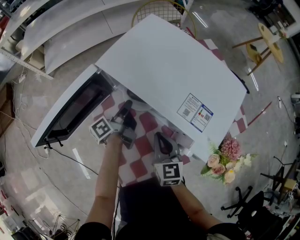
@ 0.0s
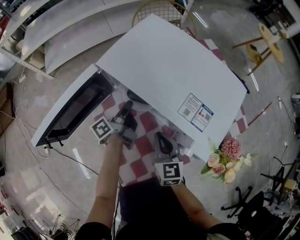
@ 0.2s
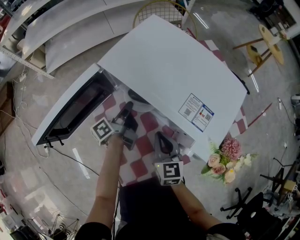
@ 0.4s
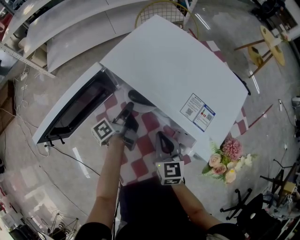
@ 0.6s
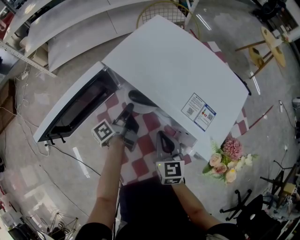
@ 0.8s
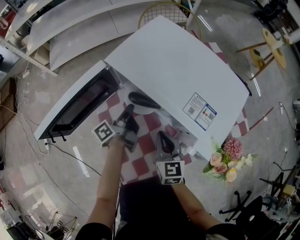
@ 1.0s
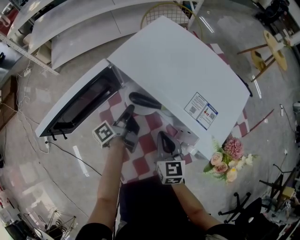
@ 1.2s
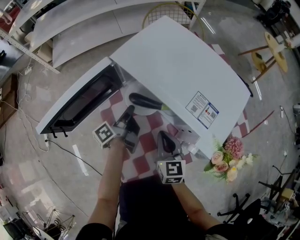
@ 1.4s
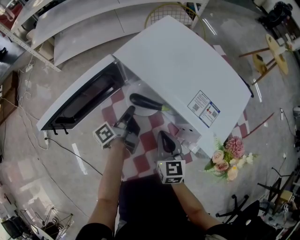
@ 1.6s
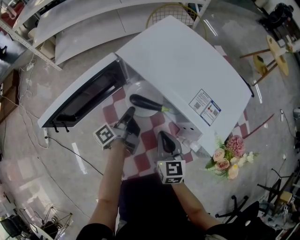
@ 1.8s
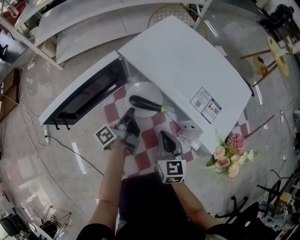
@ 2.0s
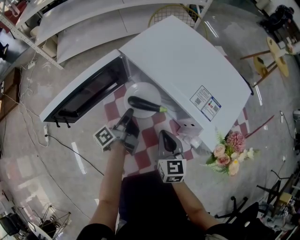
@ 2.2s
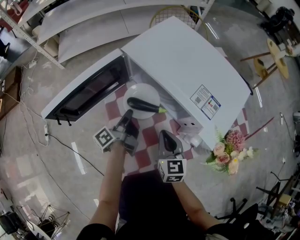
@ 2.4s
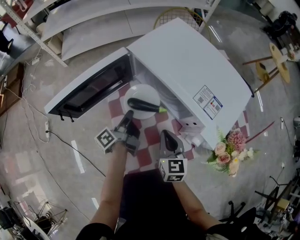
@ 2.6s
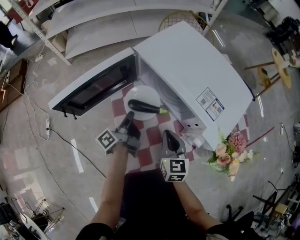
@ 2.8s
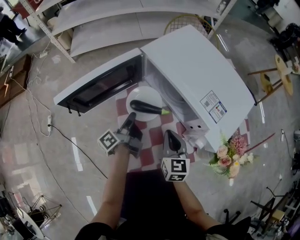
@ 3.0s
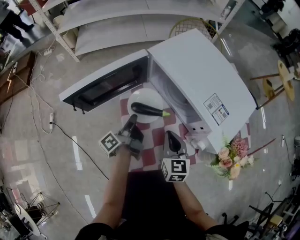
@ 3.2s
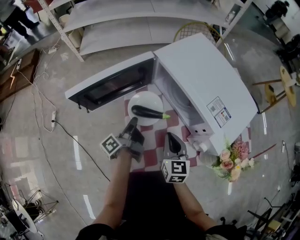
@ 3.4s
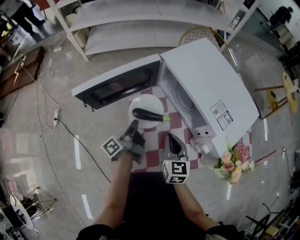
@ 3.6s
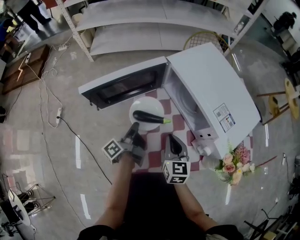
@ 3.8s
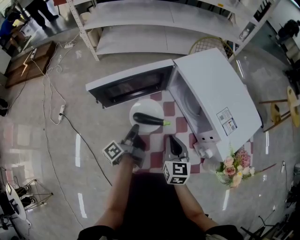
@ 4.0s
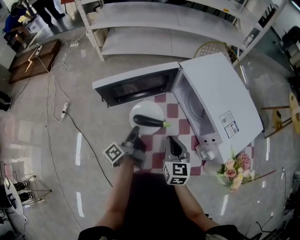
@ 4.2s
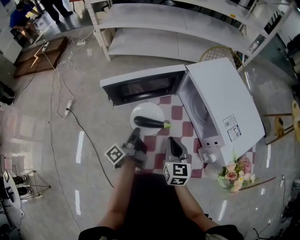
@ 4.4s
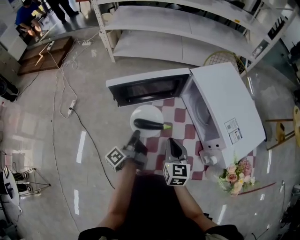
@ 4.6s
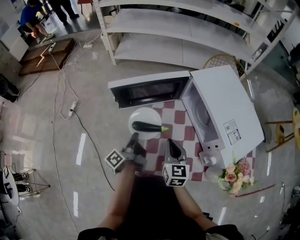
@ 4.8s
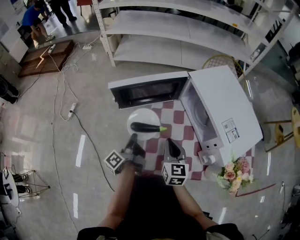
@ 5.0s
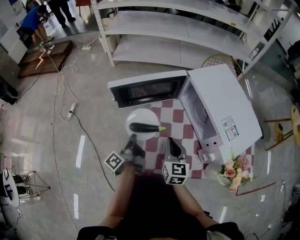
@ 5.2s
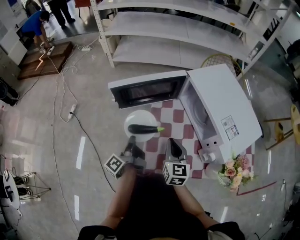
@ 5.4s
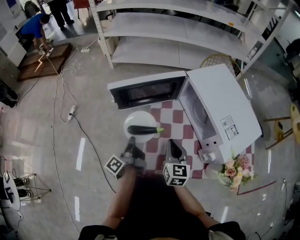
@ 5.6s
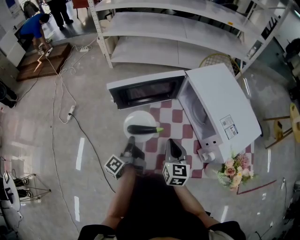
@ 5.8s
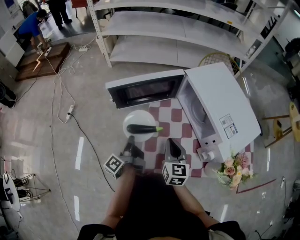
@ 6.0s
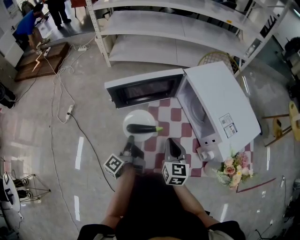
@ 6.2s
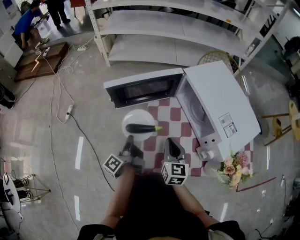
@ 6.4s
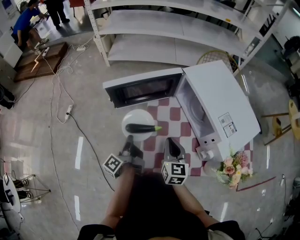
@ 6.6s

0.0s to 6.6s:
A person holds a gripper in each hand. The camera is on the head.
0.0s to 1.6s: The left gripper ends up approximately 5 cm from where it was.
1.6s to 3.2s: The left gripper is displaced backward and to the left by about 10 cm.
3.2s to 5.0s: The right gripper moves to the left, roughly 10 cm, while the left gripper goes about 15 cm to the left and backward, and changes its angle by approximately 20 degrees.
5.0s to 6.6s: There are only small adjustments of the grippers.

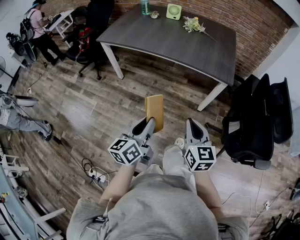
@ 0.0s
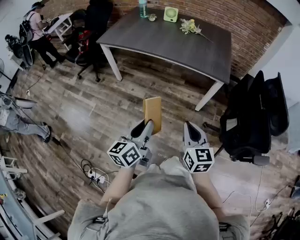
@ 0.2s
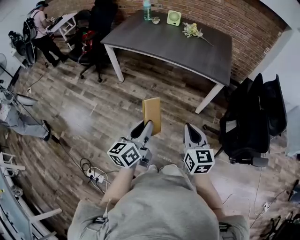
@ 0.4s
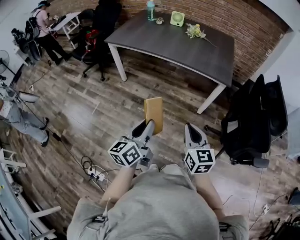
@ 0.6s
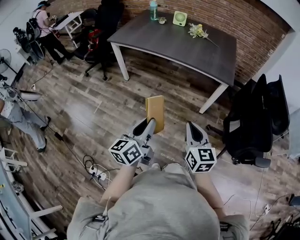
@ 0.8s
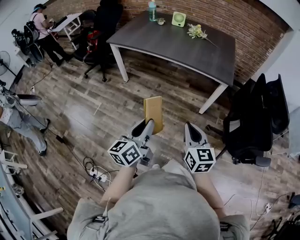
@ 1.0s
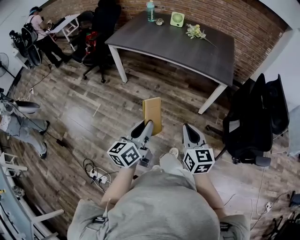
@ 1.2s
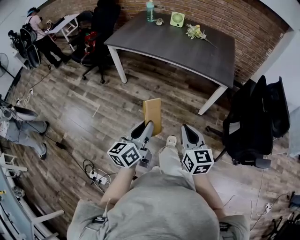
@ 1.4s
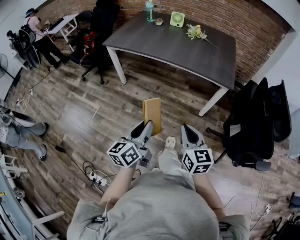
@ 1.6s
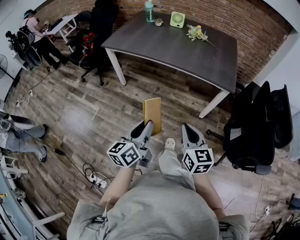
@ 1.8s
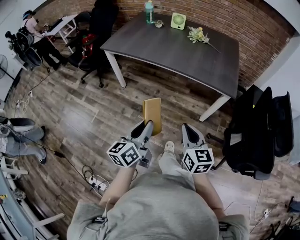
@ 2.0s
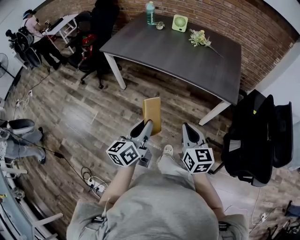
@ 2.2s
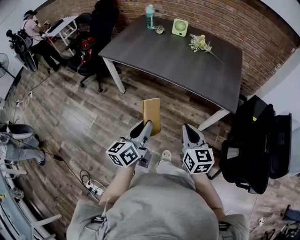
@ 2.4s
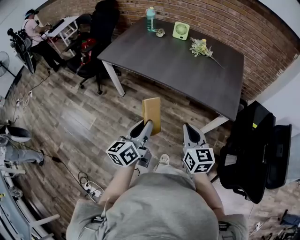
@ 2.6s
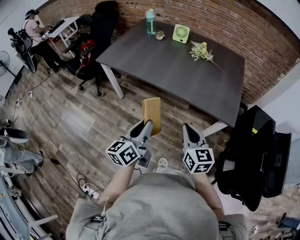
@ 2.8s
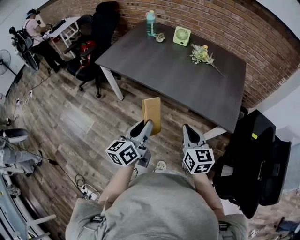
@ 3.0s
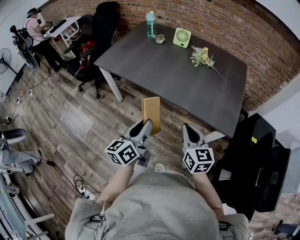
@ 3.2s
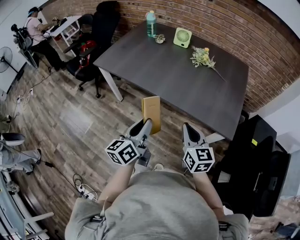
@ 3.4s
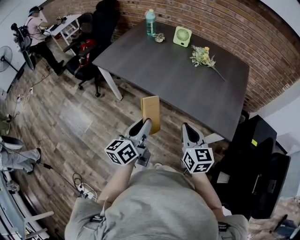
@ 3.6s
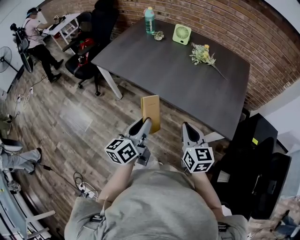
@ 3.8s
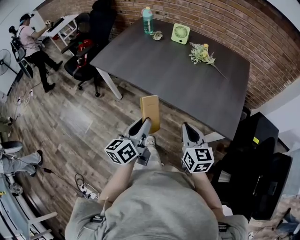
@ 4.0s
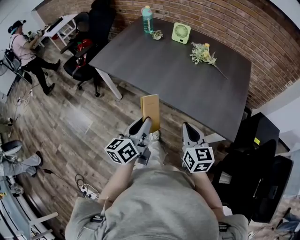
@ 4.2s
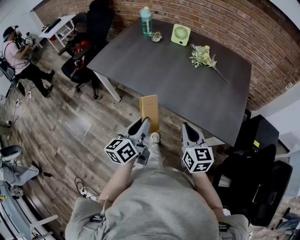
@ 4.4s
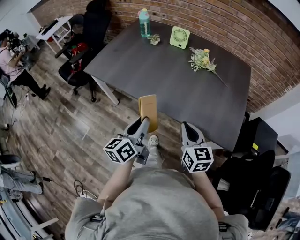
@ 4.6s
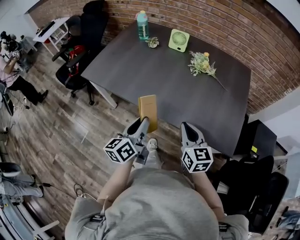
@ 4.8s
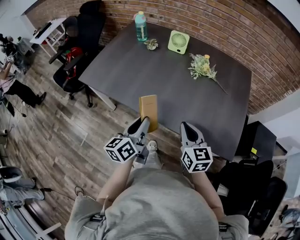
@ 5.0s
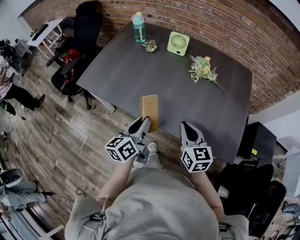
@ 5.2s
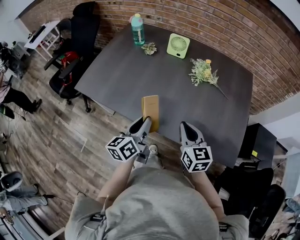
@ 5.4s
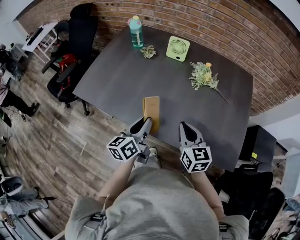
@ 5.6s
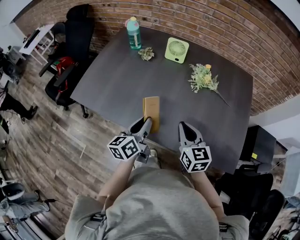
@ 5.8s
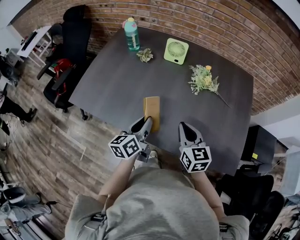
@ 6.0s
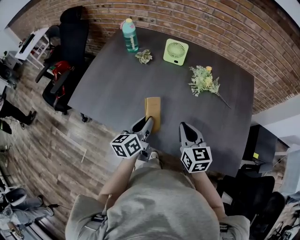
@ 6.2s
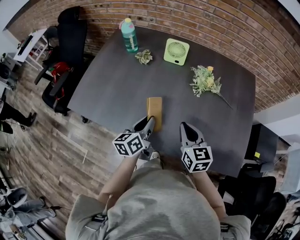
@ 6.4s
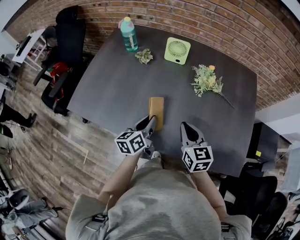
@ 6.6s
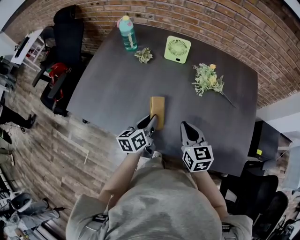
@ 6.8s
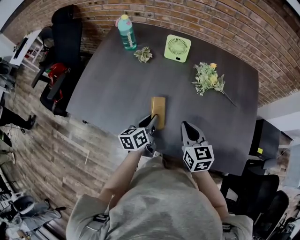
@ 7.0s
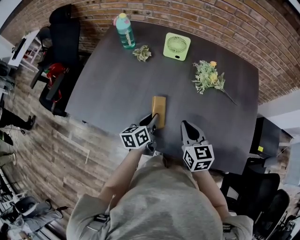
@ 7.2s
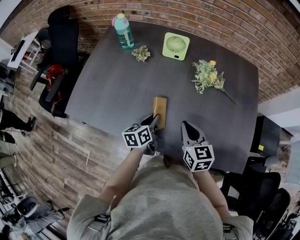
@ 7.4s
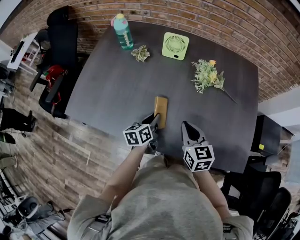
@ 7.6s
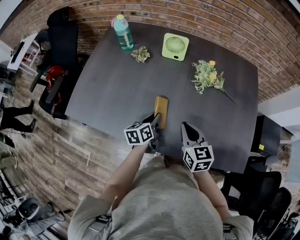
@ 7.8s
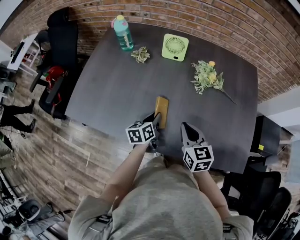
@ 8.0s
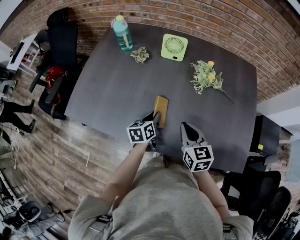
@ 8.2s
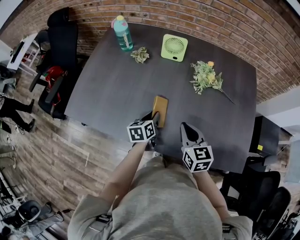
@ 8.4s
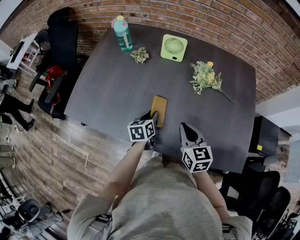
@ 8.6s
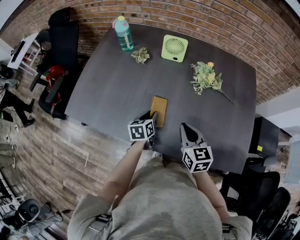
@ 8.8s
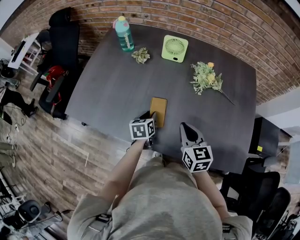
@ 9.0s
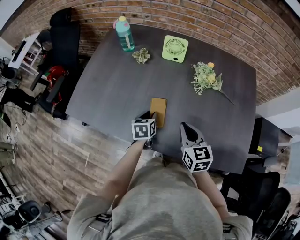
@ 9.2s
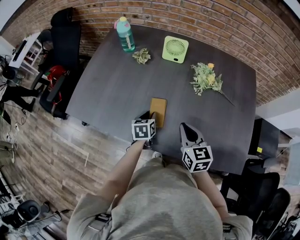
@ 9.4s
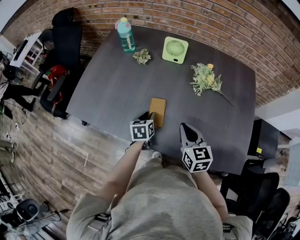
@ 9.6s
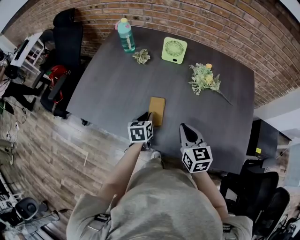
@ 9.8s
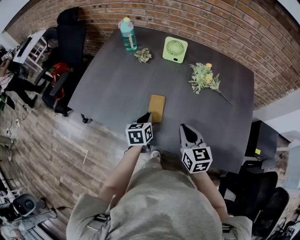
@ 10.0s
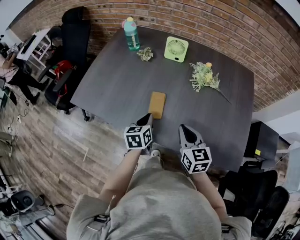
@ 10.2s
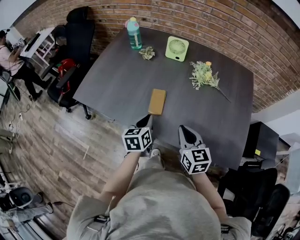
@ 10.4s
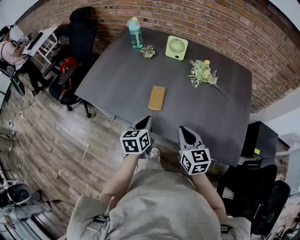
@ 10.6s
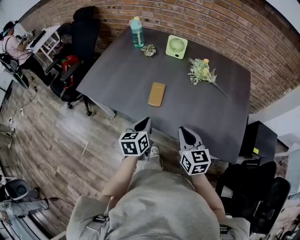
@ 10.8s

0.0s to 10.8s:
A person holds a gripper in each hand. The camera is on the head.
0.0s to 1.6s: The right gripper travels to the left by some 5 cm.
1.6s to 3.0s: The grippers both shift forward by roughly 30 cm.
3.0s to 4.6s: The two grippers go approximately 15 cm forward.
4.6s to 6.2s: The grippers both shift forward by about 25 cm.
6.2s to 7.8s: The left gripper goes approximately 10 cm downward and forward. The right gripper moves about 5 cm.
7.8s to 9.2s: The left gripper rotates some 20 degrees.
9.2s to 10.8s: The left gripper moves backward and upward, roughly 25 cm, and closes; the right gripper travels backward by about 15 cm.

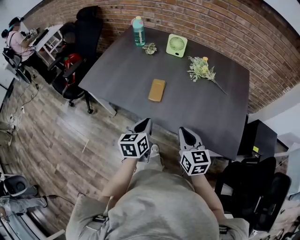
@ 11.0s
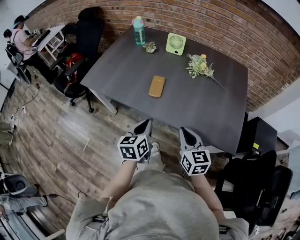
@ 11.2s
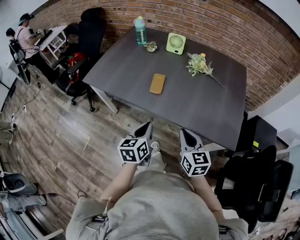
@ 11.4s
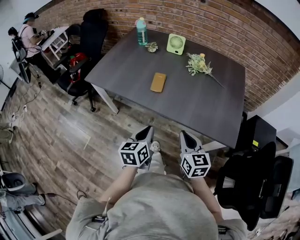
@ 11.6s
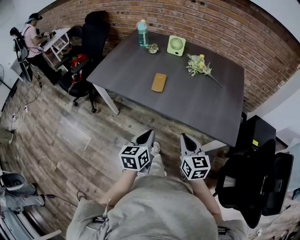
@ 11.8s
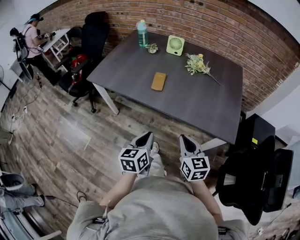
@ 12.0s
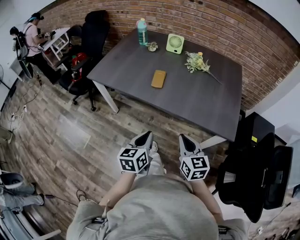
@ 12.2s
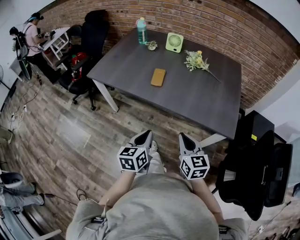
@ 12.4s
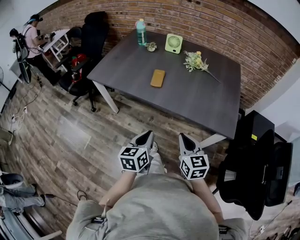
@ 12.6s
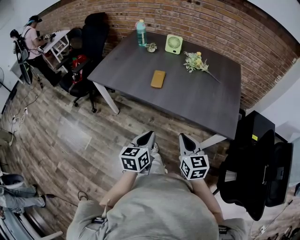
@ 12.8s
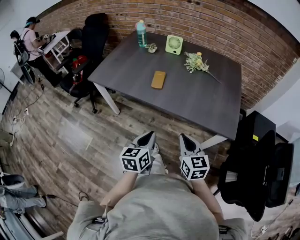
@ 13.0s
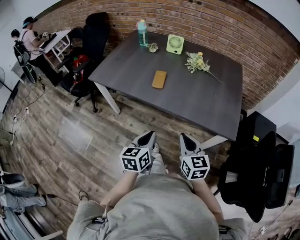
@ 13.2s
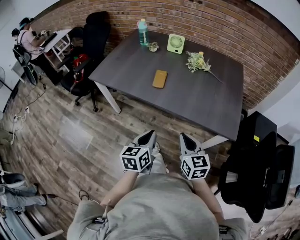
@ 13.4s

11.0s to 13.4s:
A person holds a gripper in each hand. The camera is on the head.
11.0s to 12.2s: Both grippers travel together backward, approximately 20 cm.
12.2s to 13.4s: The grippers make only small movements.

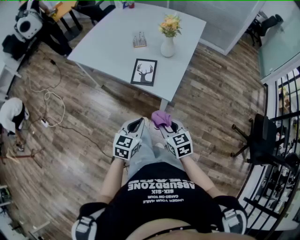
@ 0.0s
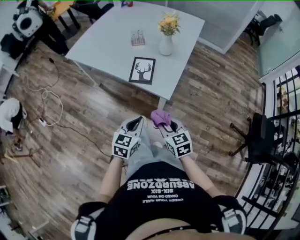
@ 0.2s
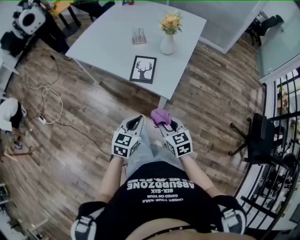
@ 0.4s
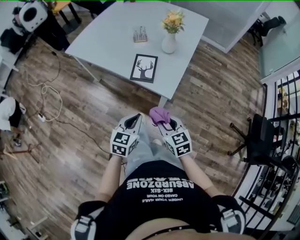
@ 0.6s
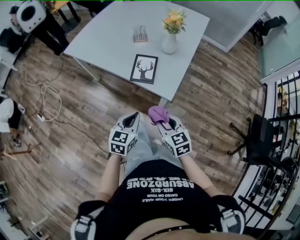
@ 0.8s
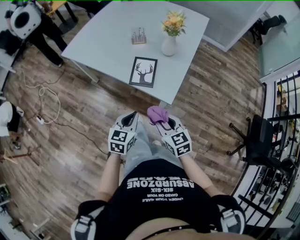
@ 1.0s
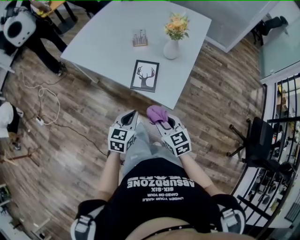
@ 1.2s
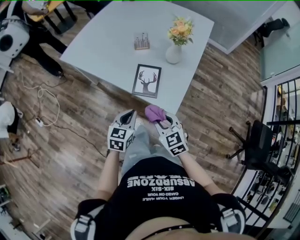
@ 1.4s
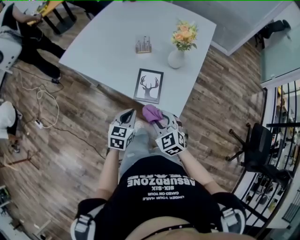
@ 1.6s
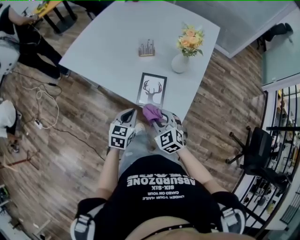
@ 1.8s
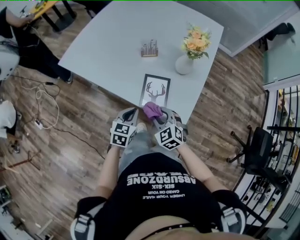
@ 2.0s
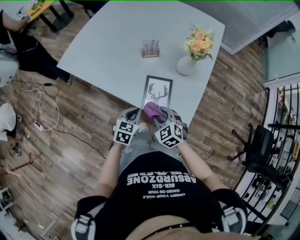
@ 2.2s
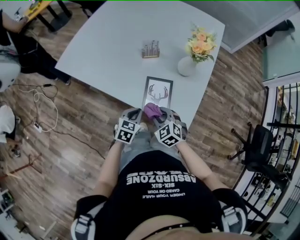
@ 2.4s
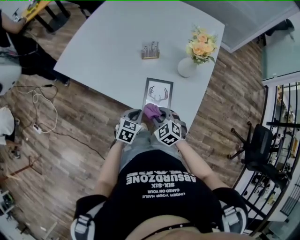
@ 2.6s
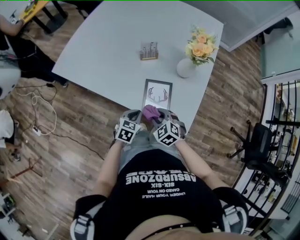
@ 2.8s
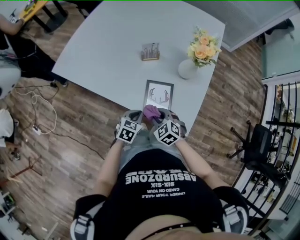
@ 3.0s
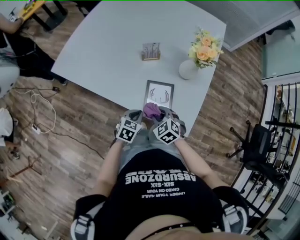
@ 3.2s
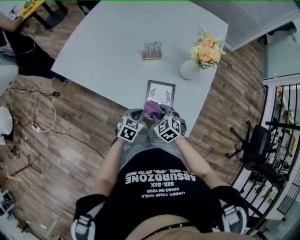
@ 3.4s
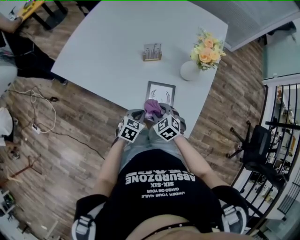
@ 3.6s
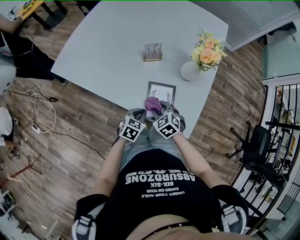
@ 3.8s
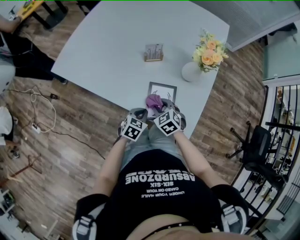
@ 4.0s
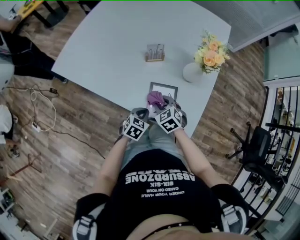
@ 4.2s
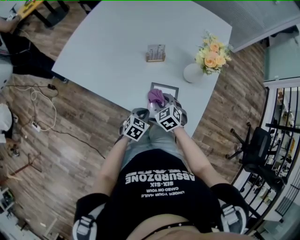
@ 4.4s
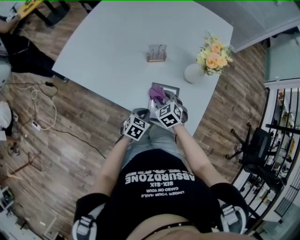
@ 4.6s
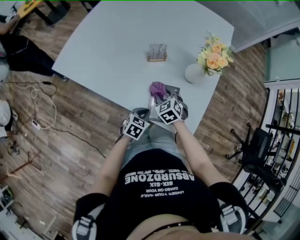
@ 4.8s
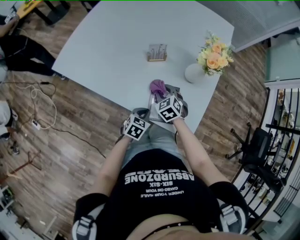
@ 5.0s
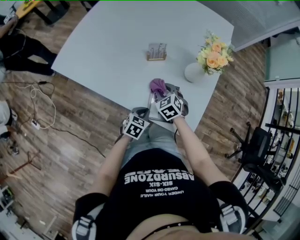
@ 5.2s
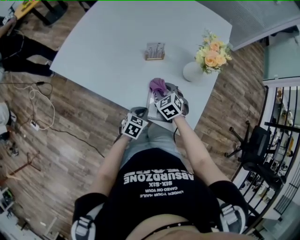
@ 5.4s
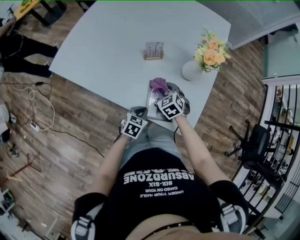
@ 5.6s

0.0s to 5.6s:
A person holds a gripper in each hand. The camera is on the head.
0.0s to 1.4s: Both grippers move forward, roughly 15 cm.
1.4s to 2.8s: The left gripper moves forward and downward, roughly 20 cm. The right gripper travels forward, downward and to the left by approximately 20 cm, and rotates roughly 20 degrees.
2.8s to 4.2s: The right gripper heads forward, covering roughly 10 cm.
4.2s to 5.6s: The right gripper goes approximately 5 cm forward.
